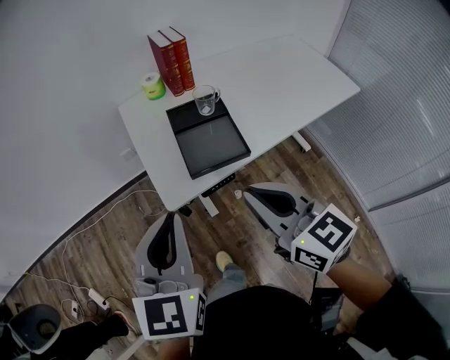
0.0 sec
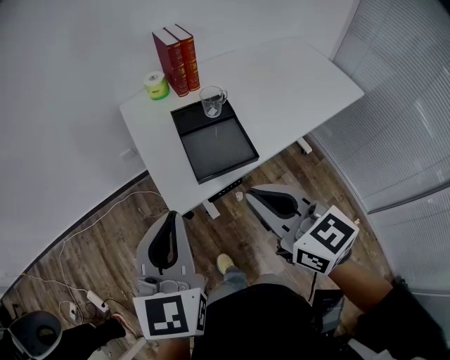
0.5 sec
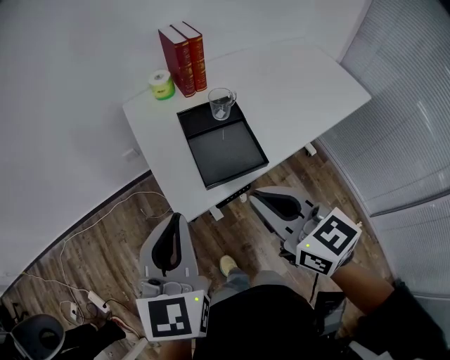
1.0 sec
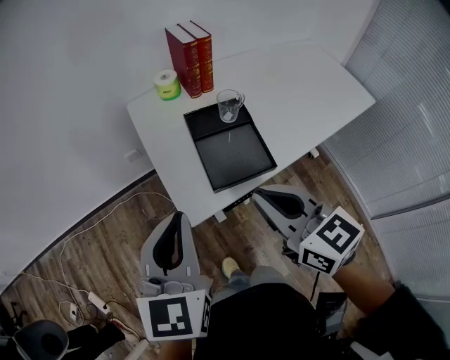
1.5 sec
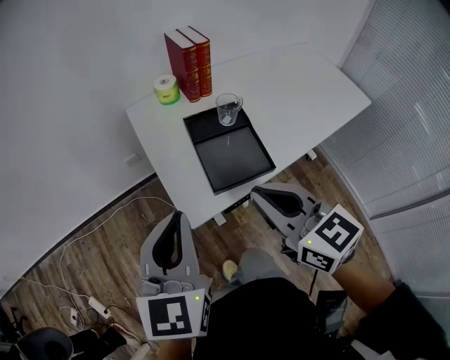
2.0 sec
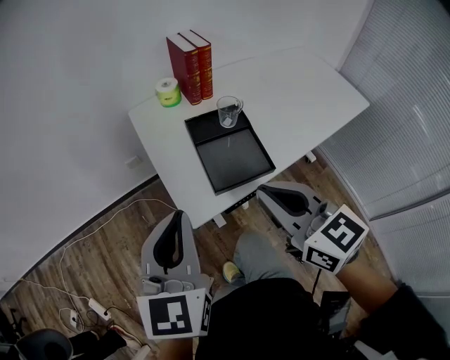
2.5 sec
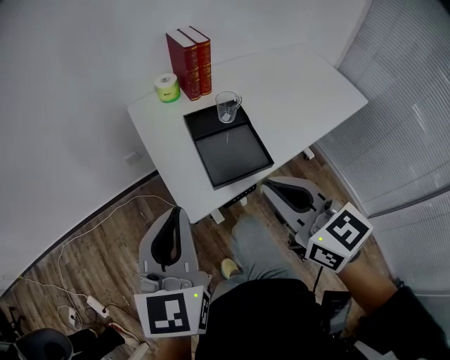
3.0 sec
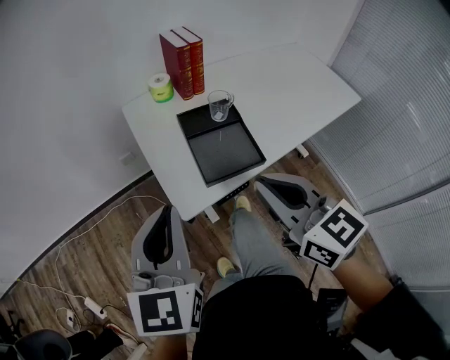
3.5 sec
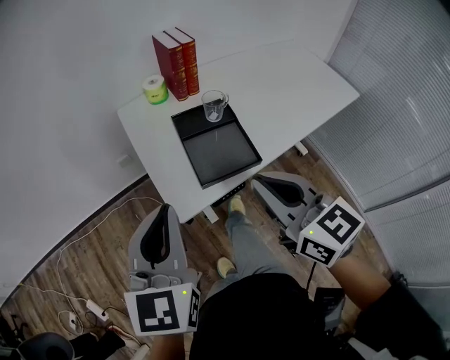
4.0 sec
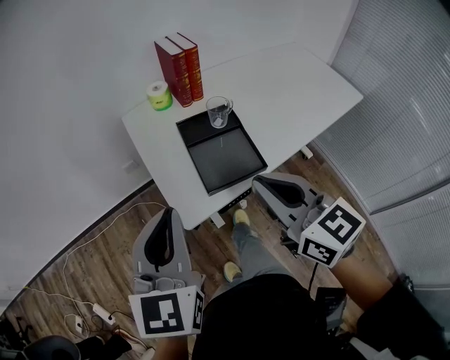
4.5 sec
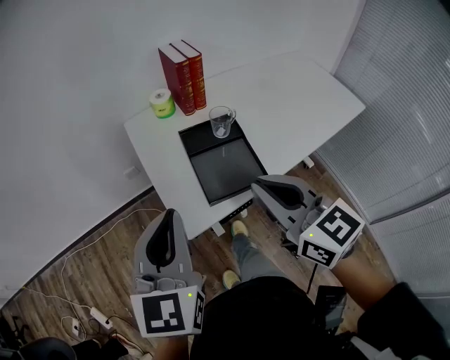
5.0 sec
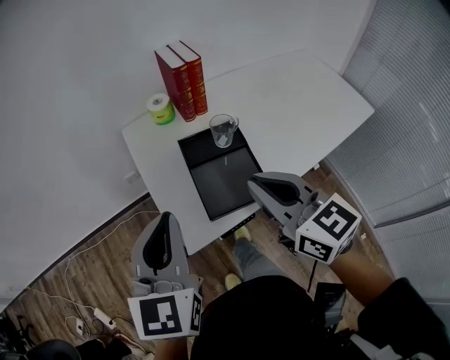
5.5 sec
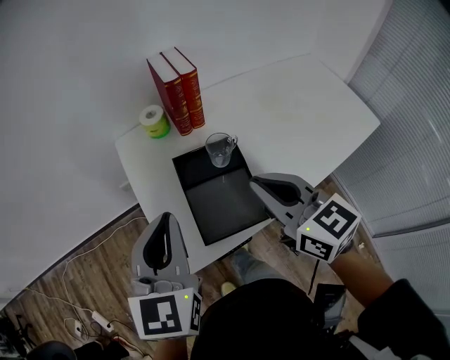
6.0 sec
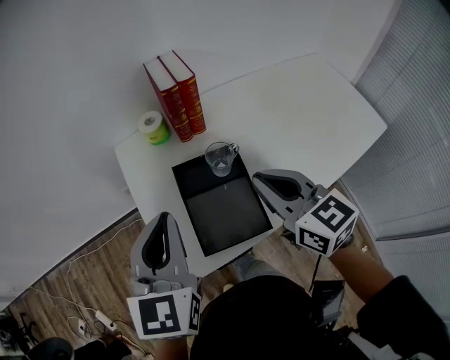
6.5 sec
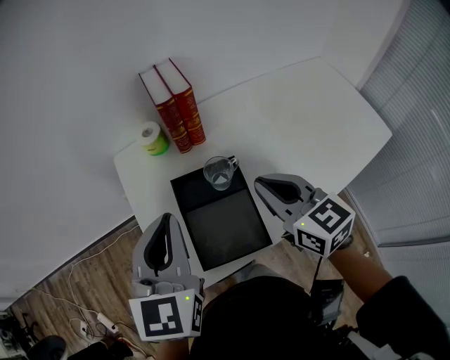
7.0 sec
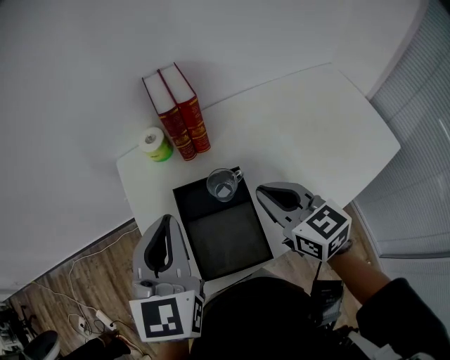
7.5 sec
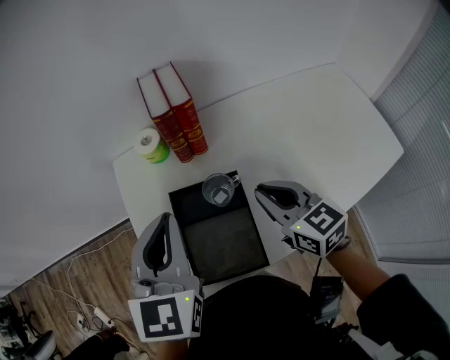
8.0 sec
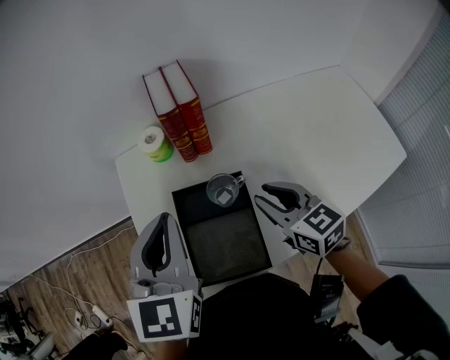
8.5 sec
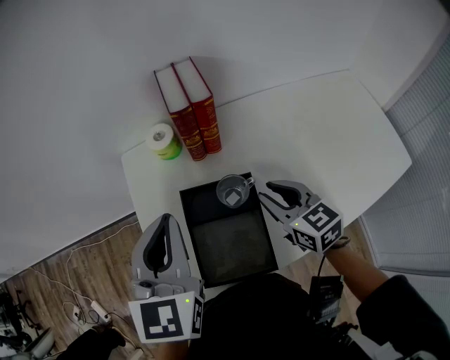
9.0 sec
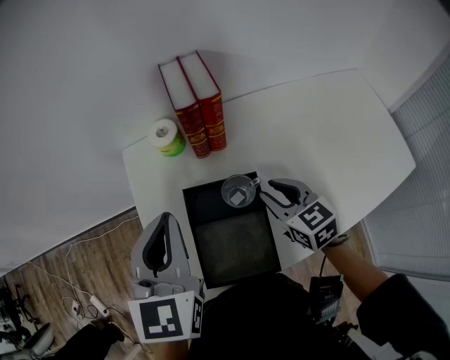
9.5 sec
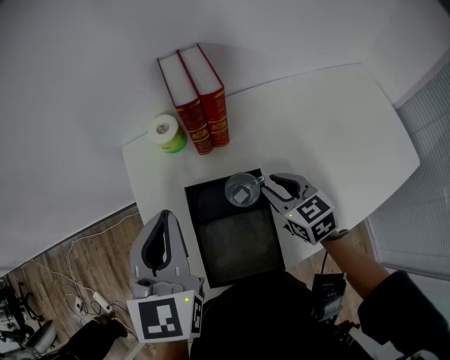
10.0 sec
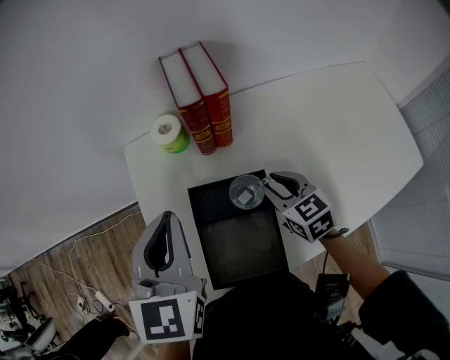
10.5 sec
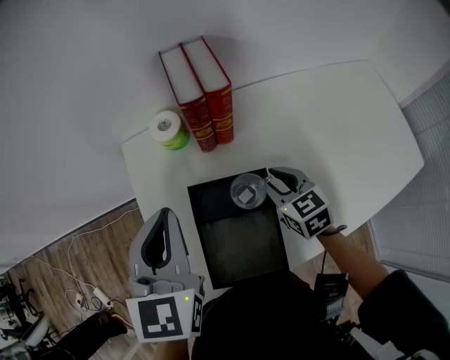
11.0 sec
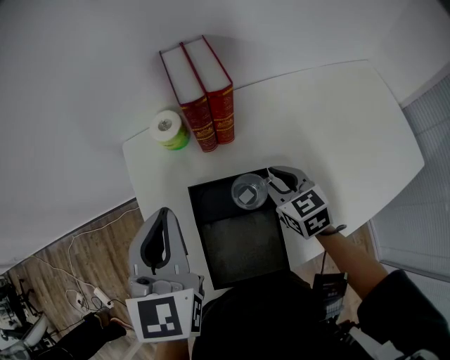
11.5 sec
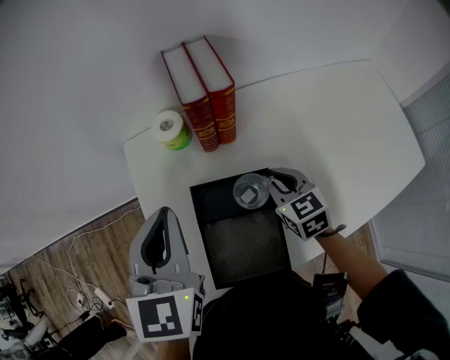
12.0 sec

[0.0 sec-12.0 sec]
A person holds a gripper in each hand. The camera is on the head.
0.0 sec to 2.0 sec: Both grippers move forward, approximately 10 cm.
2.0 sec to 4.0 sec: There are only small adjustments of the grippers.
4.0 sec to 6.0 sec: Both grippers move forward and to the right, some 20 cm.
6.0 sec to 8.0 sec: The right gripper moves forward, to the right and downward, approximately 15 cm; the left gripper shifts approximately 15 cm forward and to the right.
8.0 sec to 10.0 sec: The right gripper moves downward and forward, about 10 cm, and opens up. Meanwhile the left gripper moves approximately 5 cm.
10.0 sec to 12.0 sec: There are only small adjustments of the grippers.

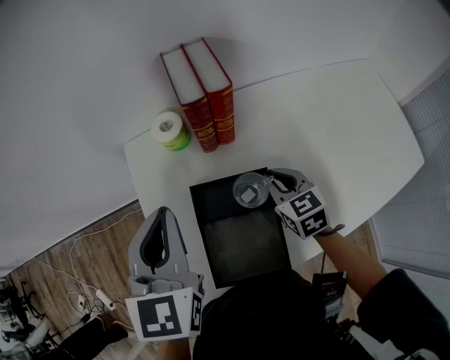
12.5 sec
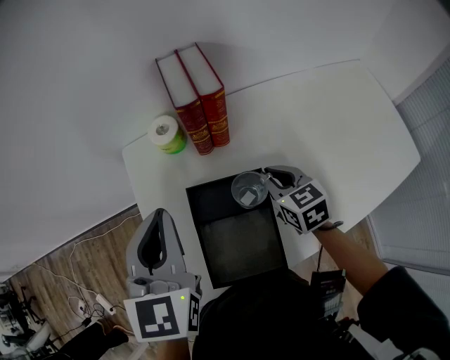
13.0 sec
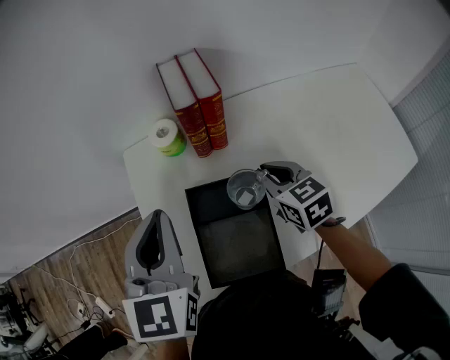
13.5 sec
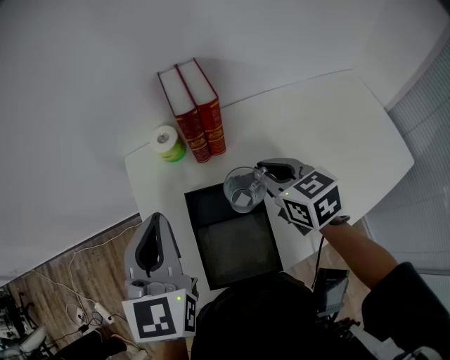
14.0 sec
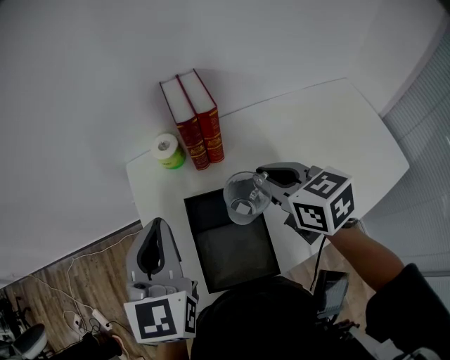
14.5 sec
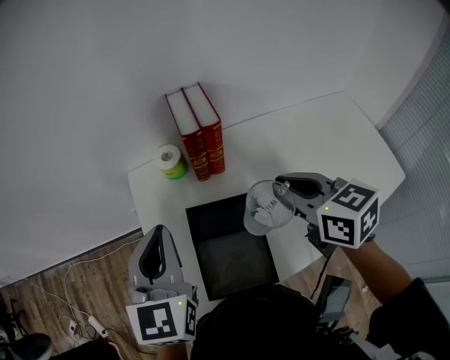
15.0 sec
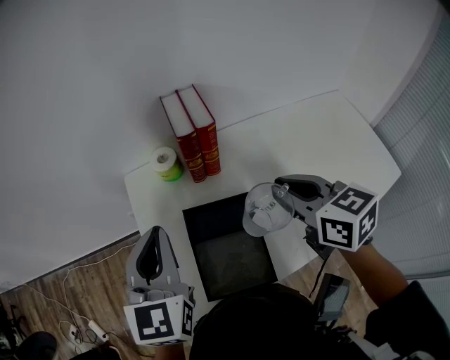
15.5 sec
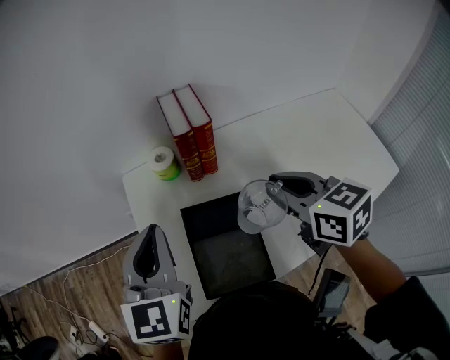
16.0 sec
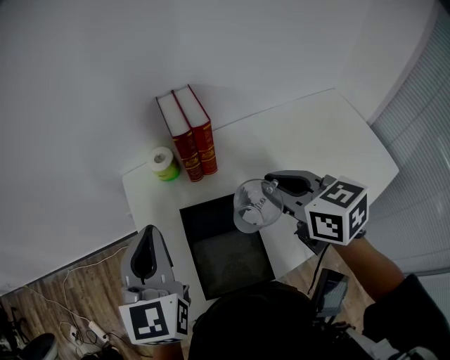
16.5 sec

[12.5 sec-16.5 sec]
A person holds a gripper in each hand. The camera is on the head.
12.5 sec to 14.5 sec: The right gripper shifts roughly 15 cm upward.
14.5 sec to 16.5 sec: The right gripper shifts by some 5 cm.

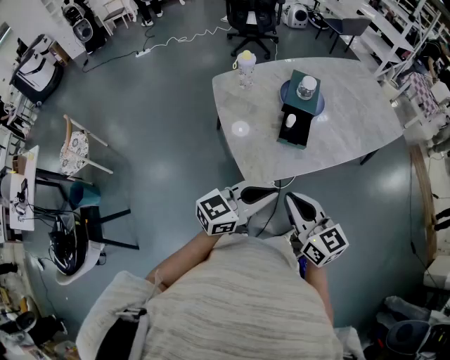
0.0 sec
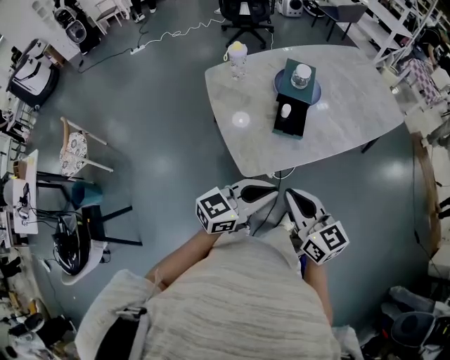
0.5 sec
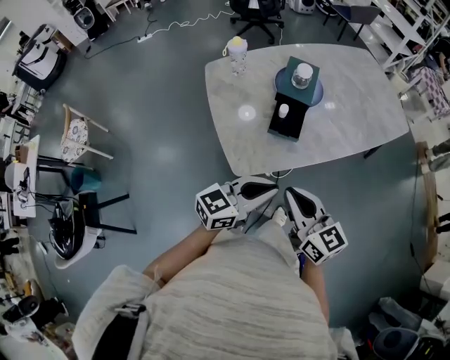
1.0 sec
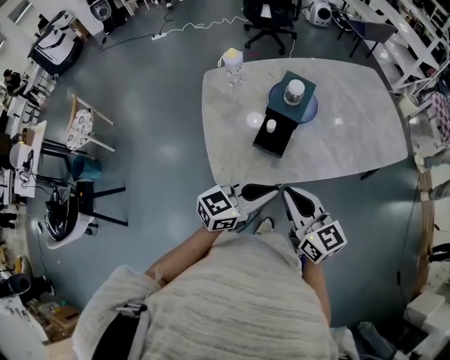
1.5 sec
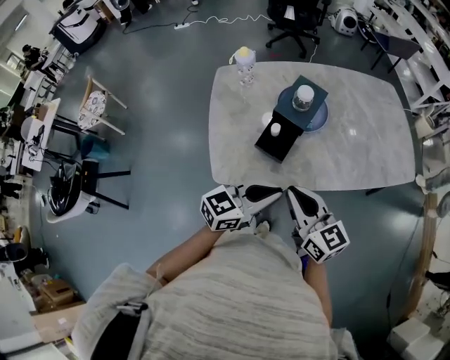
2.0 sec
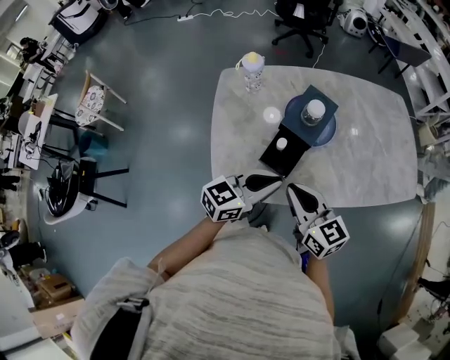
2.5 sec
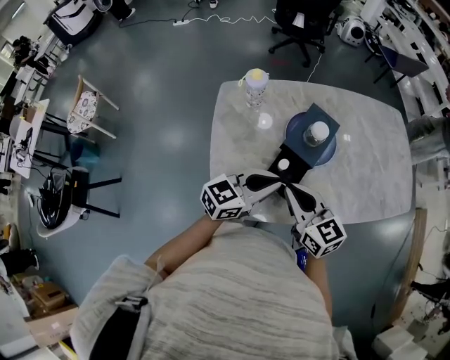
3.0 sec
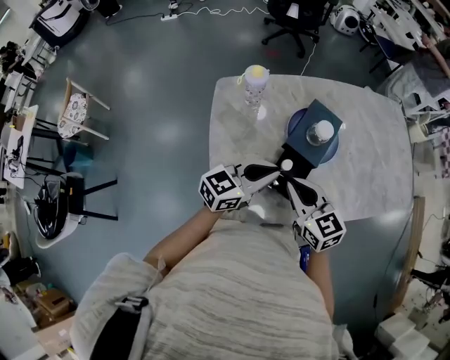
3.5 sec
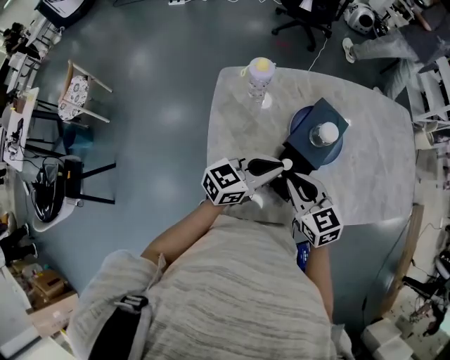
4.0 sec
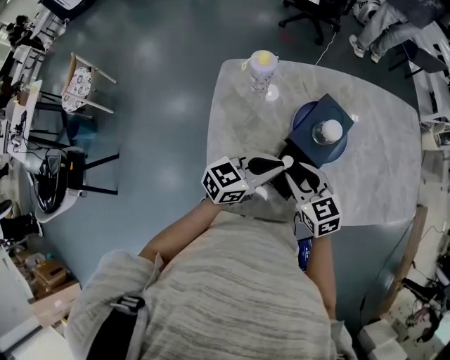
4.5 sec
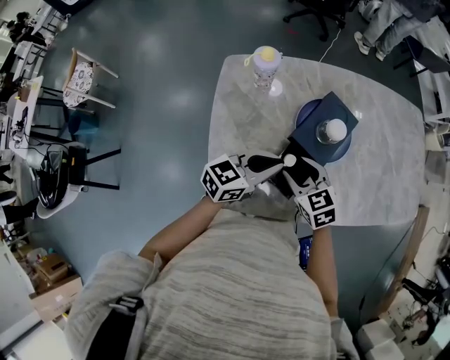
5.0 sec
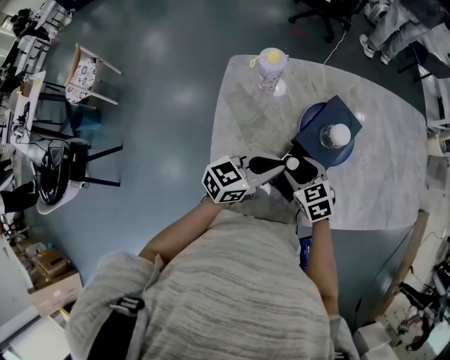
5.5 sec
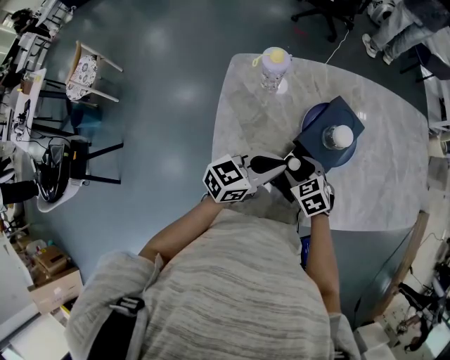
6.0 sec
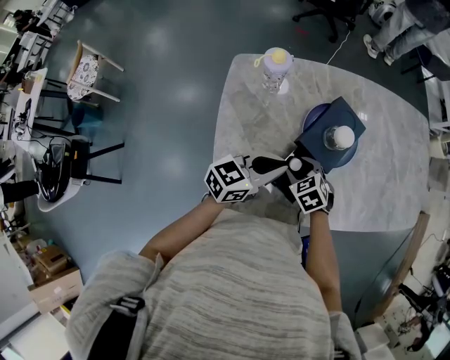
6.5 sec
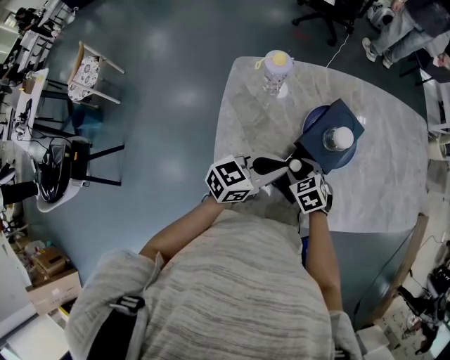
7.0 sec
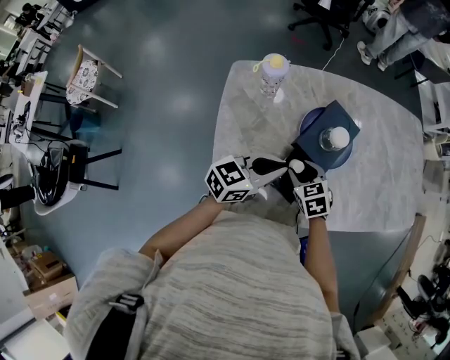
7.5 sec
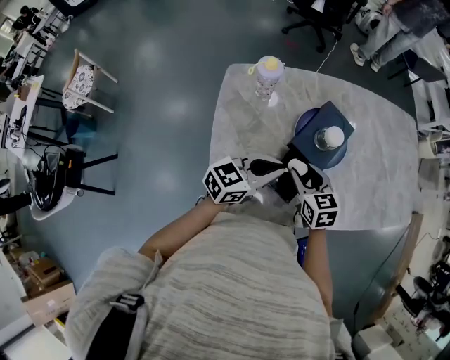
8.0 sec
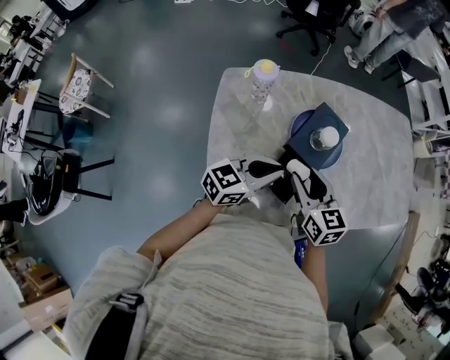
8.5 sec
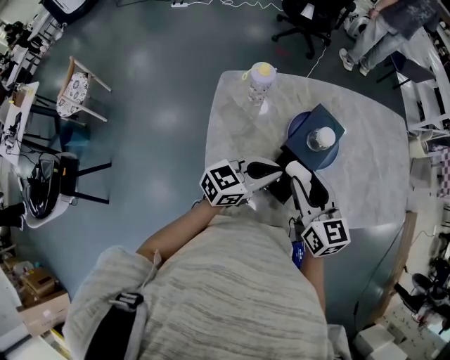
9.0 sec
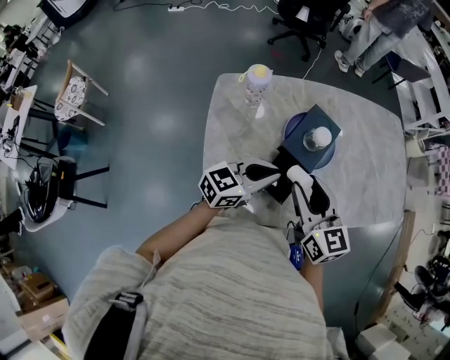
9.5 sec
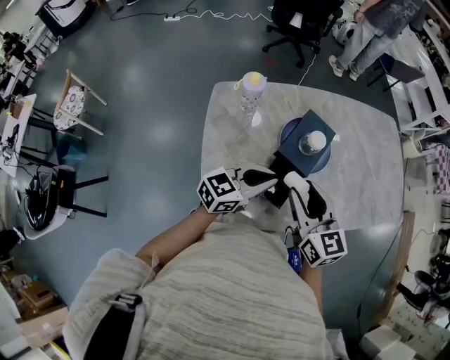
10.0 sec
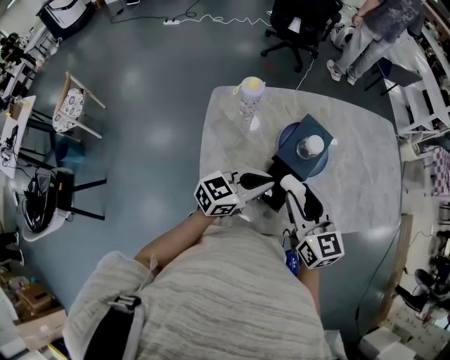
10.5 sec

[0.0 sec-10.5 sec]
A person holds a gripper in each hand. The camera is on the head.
0.0 sec to 2.0 sec: The two grippers go roughly 20 cm to the right and forward.
2.0 sec to 4.0 sec: The right gripper heads forward, to the left and downward, covering some 25 cm, and changes its angle by approximately 20 degrees, while the left gripper moves forward and to the left, about 25 cm.
4.0 sec to 6.5 sec: The right gripper goes about 15 cm downward, swivels approximately 30 degrees, and opens up.
6.5 sec to 8.5 sec: The right gripper heads upward, covering approximately 15 cm, and angles its fingers upward, by some 40 degrees.
8.5 sec to 10.5 sec: The right gripper shifts about 5 cm upward.
